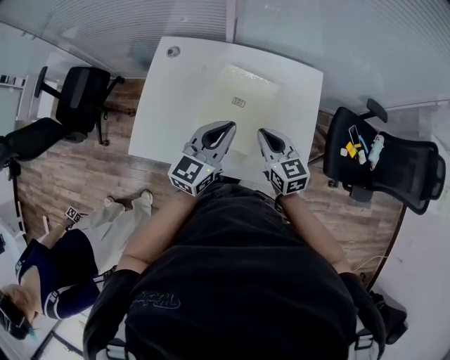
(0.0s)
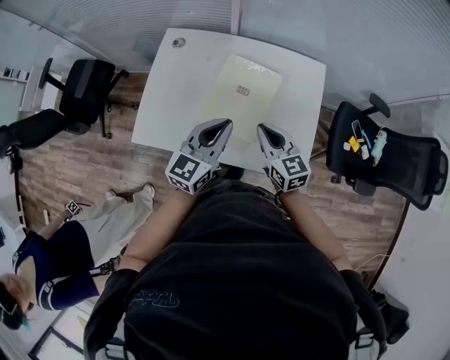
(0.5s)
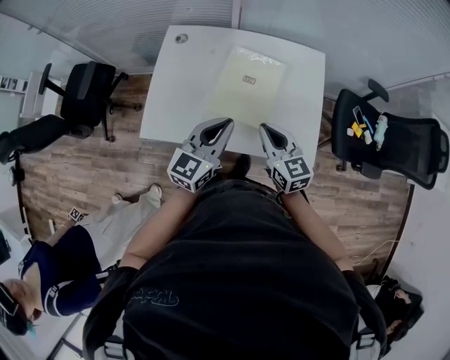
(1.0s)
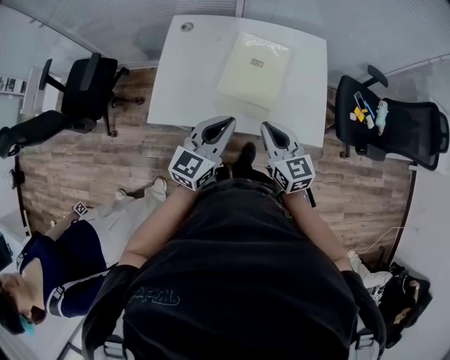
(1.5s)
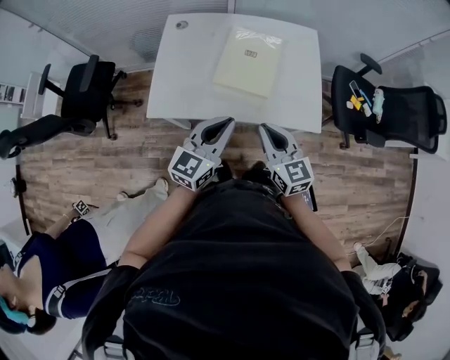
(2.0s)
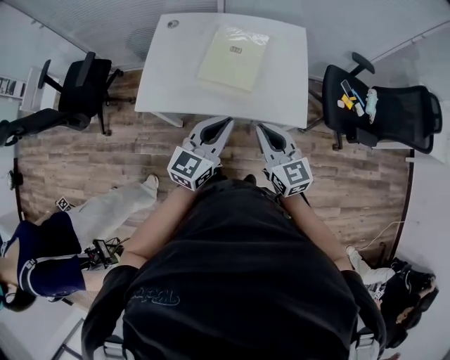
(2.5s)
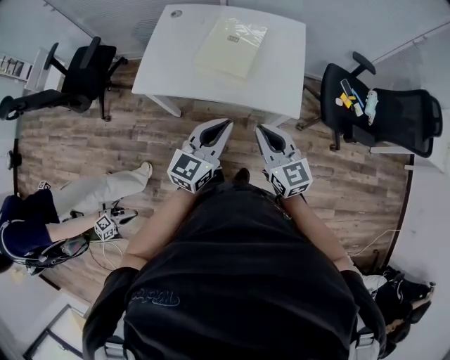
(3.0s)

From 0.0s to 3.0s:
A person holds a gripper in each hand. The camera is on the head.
From 0.0s to 1.5s: Both grippers move backward and to the left, approximately 20 cm.
From 1.5s to 3.0s: The grippers both shift backward and to the right by roughly 20 cm.

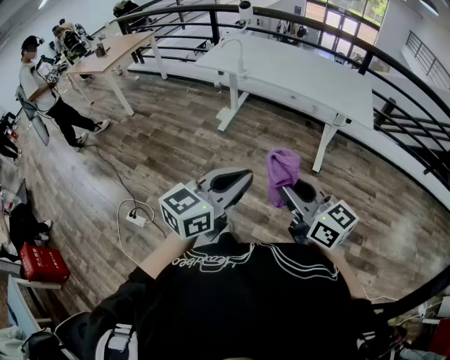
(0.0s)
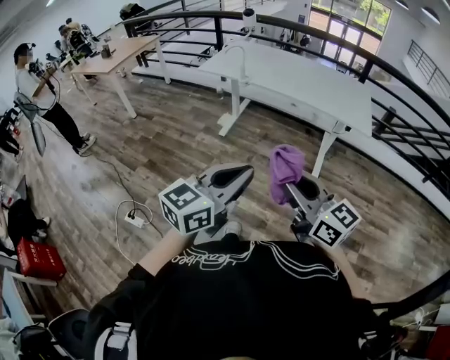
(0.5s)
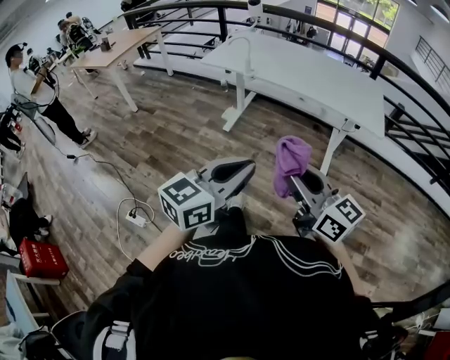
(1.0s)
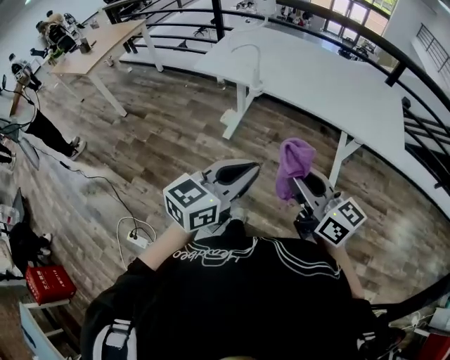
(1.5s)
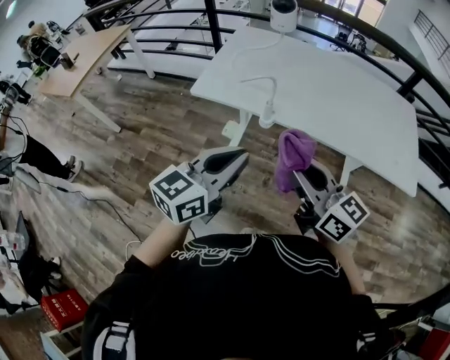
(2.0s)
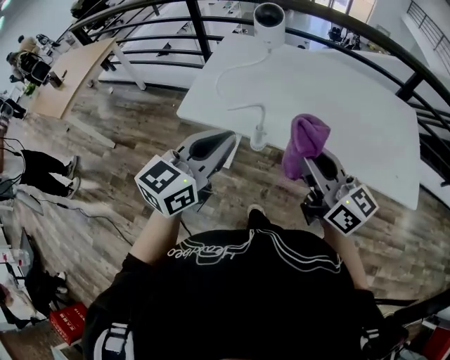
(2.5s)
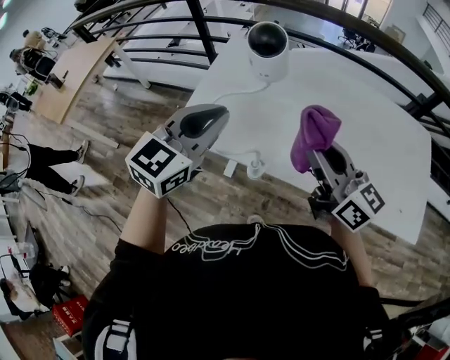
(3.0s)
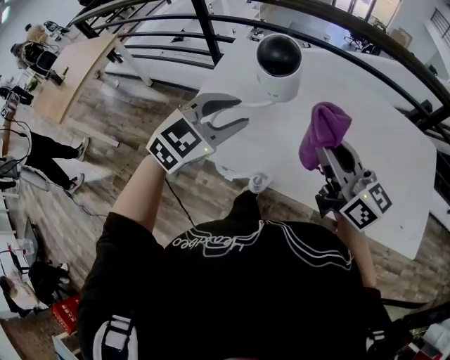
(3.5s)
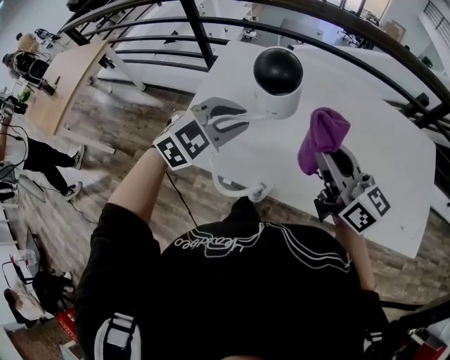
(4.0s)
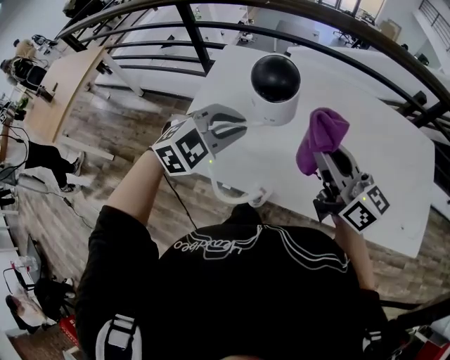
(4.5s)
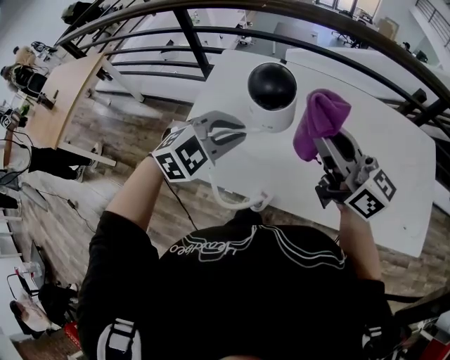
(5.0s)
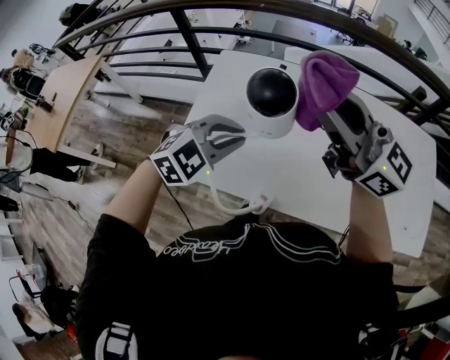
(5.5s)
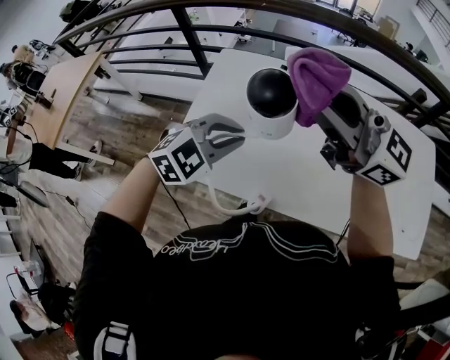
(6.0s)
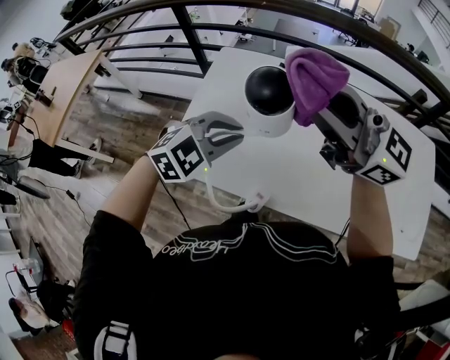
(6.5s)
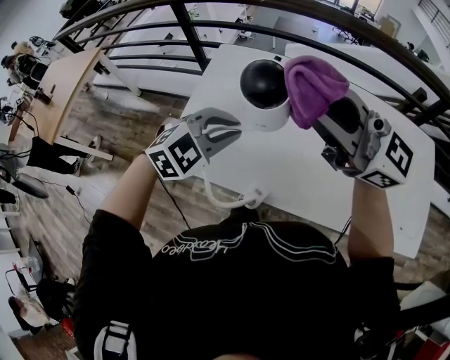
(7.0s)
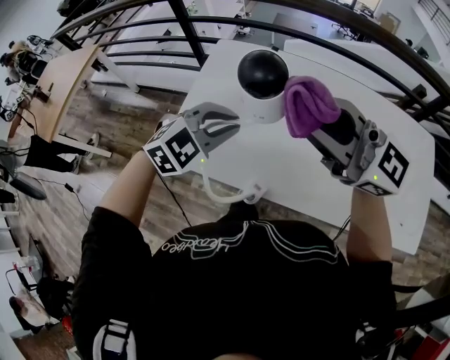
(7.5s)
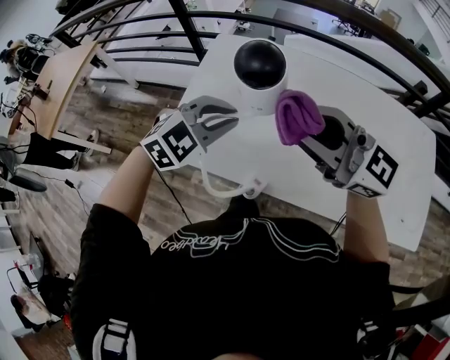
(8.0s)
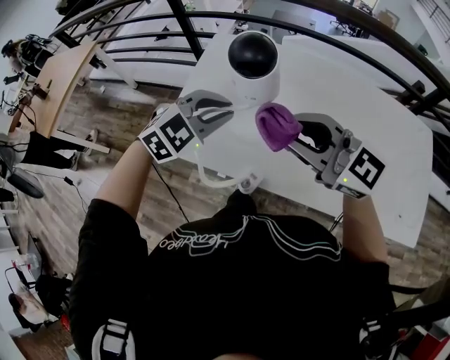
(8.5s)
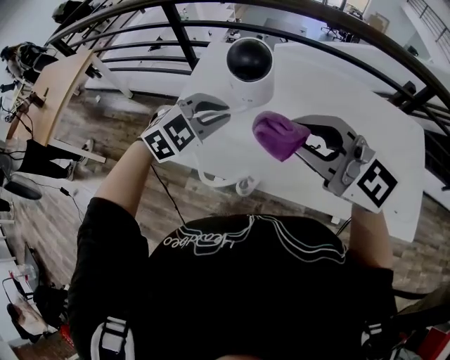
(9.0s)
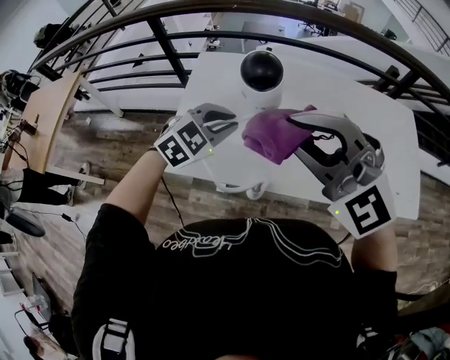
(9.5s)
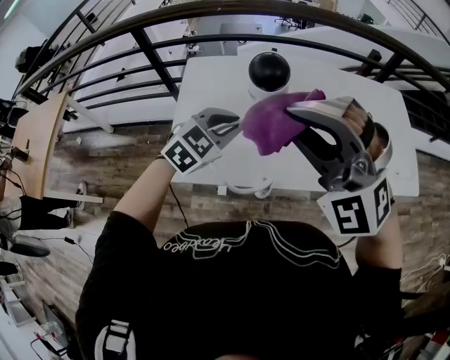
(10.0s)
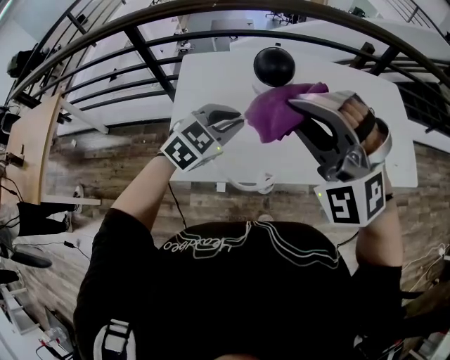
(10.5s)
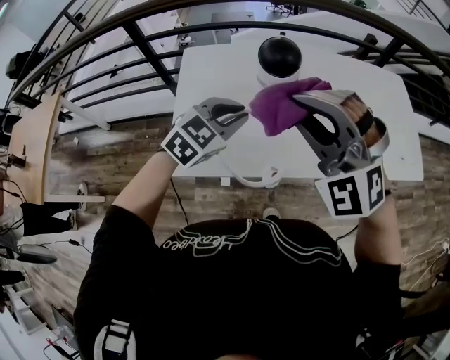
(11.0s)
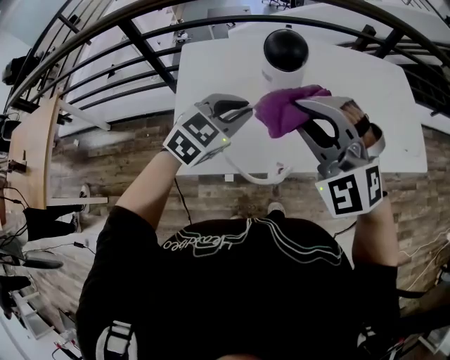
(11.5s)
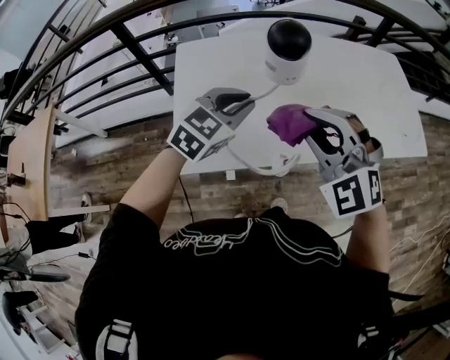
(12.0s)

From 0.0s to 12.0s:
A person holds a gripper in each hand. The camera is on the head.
From 0.0s to 2.0s: Both grippers are carried forward, some 60 cm.
From 2.0s to 4.0s: Both grippers are carried forward, some 40 cm. The left gripper rotates around the line of its fingers by some 40 degrees, clockwise from behind, and opens up.
From 4.0s to 6.0s: The right gripper is displaced upward and forward by roughly 15 cm, and swivels about 30 degrees.
From 6.0s to 8.0s: The right gripper travels downward and backward by about 10 cm.
From 8.0s to 10.0s: The right gripper moves some 10 cm, and turns by about 80 degrees.
From 10.0s to 12.0s: The right gripper heads downward, covering roughly 10 cm, and rotates some 30 degrees.

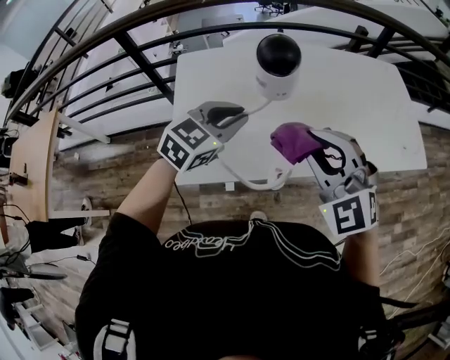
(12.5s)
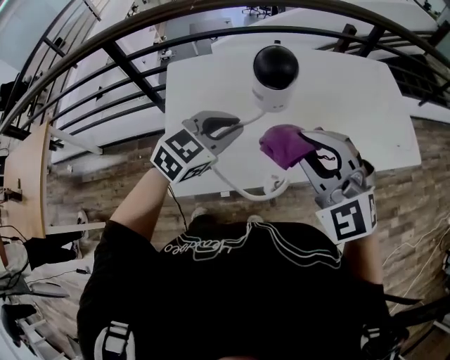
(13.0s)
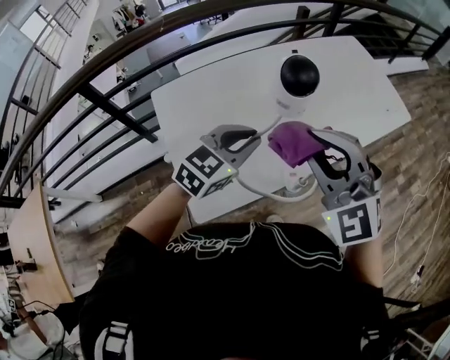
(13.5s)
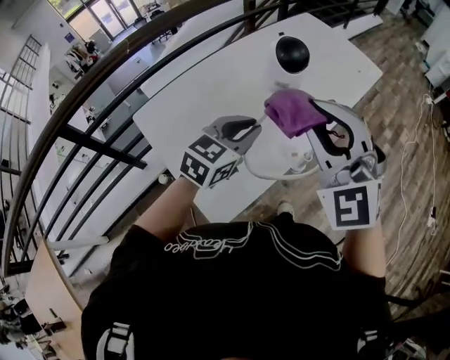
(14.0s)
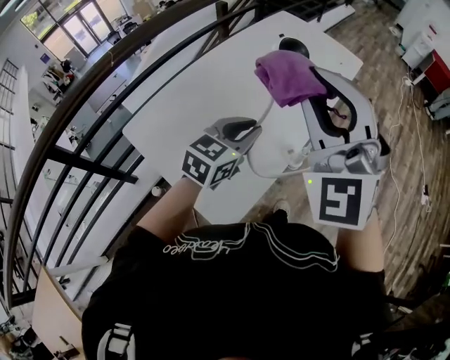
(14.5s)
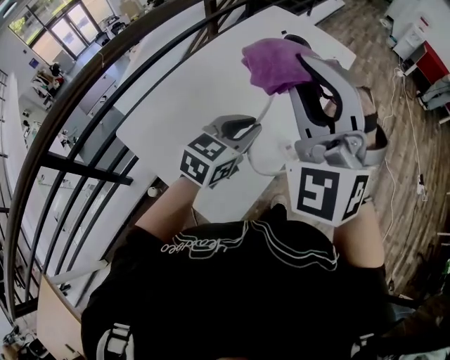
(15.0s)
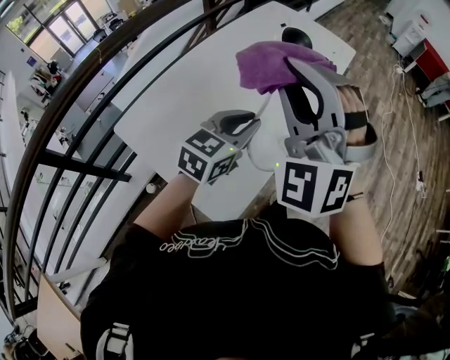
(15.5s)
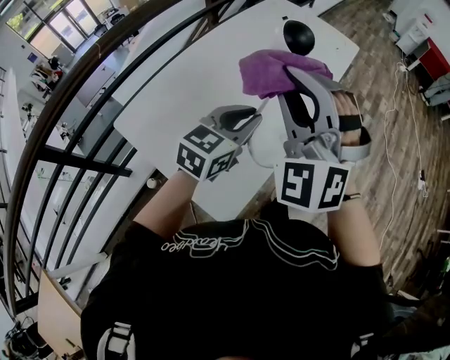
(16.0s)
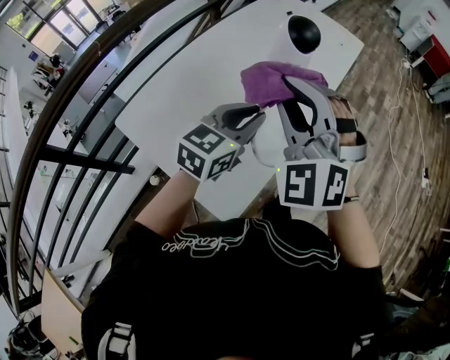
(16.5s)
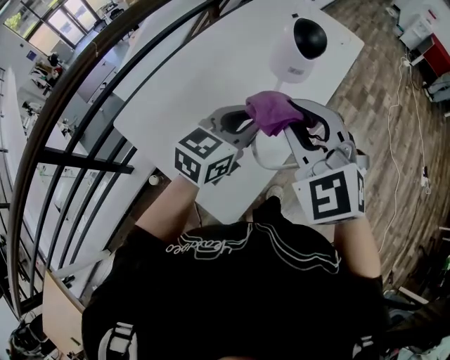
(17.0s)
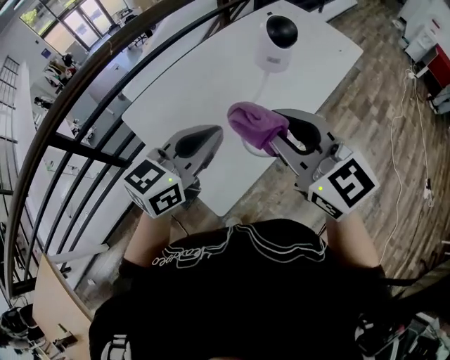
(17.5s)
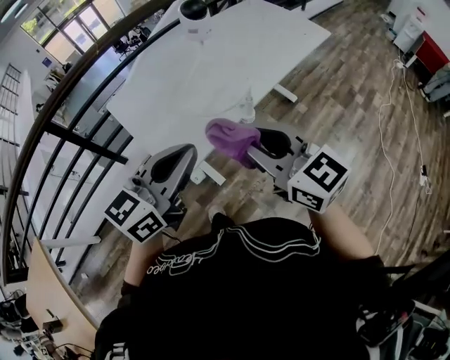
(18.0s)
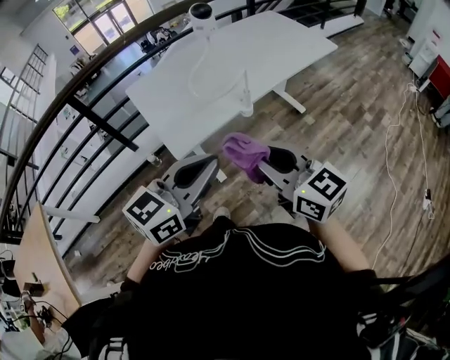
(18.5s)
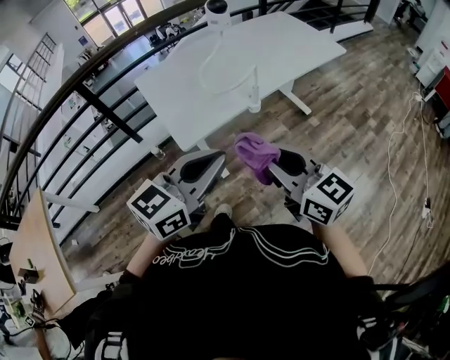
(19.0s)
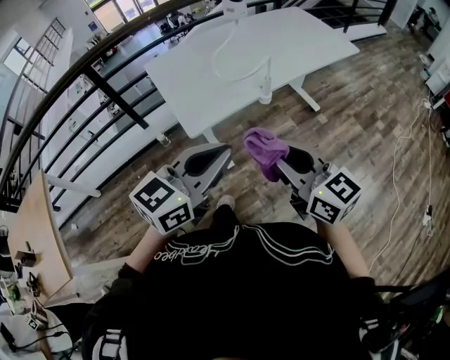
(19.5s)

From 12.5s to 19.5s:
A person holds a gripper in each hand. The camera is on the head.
From 12.5s to 14.5s: The left gripper turns by roughly 40 degrees, while the right gripper shifts roughly 15 cm upward, and swivels roughly 60 degrees.
From 14.5s to 16.0s: The right gripper goes approximately 5 cm downward.
From 16.0s to 17.5s: The right gripper heads backward, covering about 10 cm, and twists roughly 60 degrees clockwise, seen from behind, while the left gripper travels backward and upward by approximately 10 cm.
From 17.5s to 19.5s: The left gripper shifts approximately 35 cm backward. Meanwhile the right gripper is displaced backward and to the right by some 35 cm, and swivels about 20 degrees.

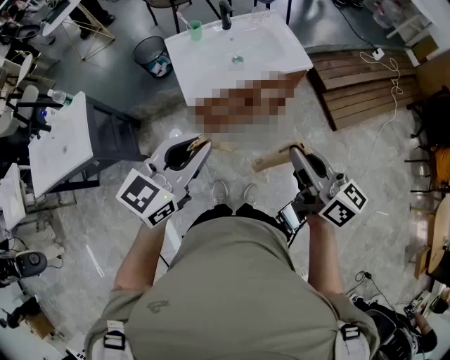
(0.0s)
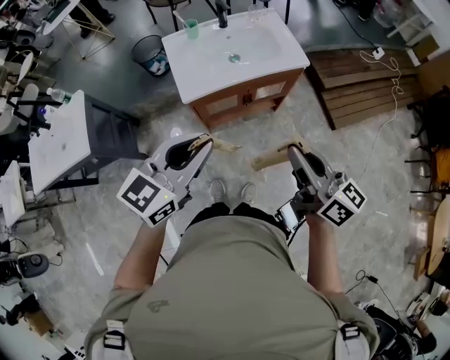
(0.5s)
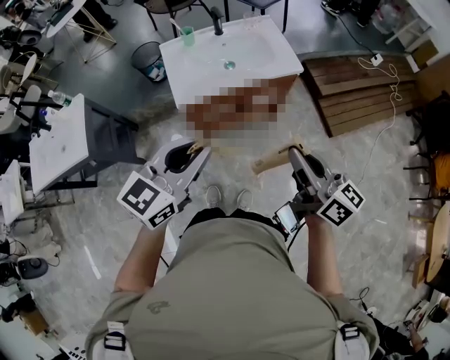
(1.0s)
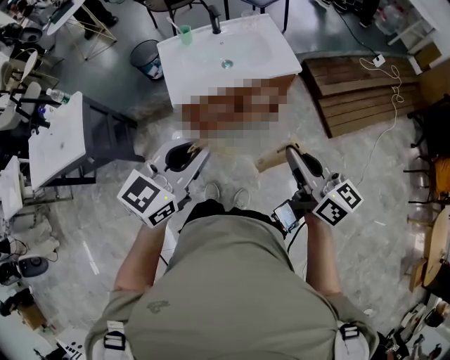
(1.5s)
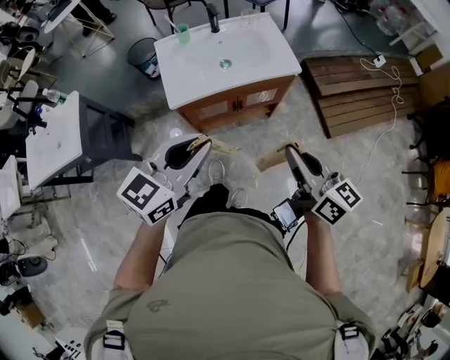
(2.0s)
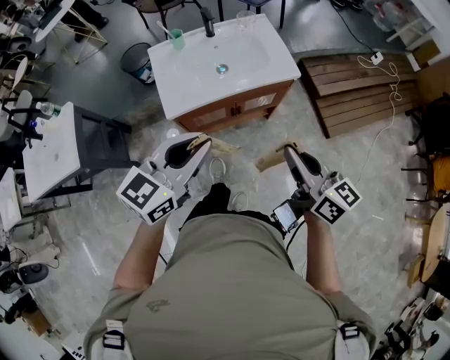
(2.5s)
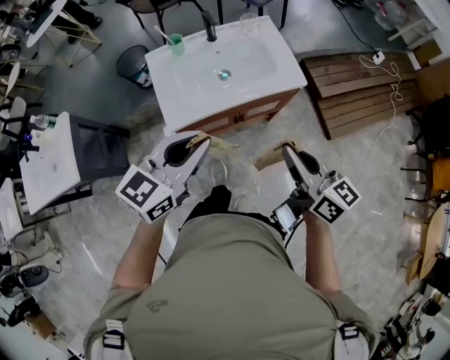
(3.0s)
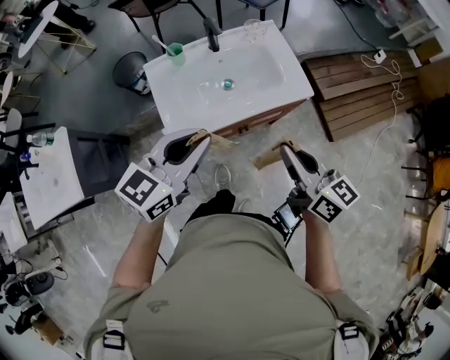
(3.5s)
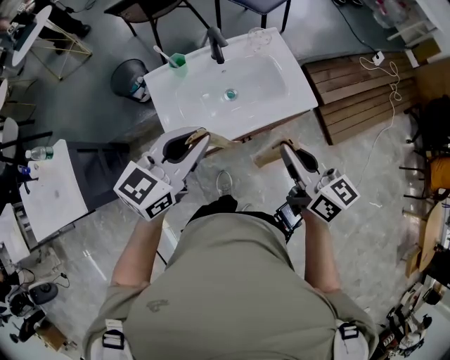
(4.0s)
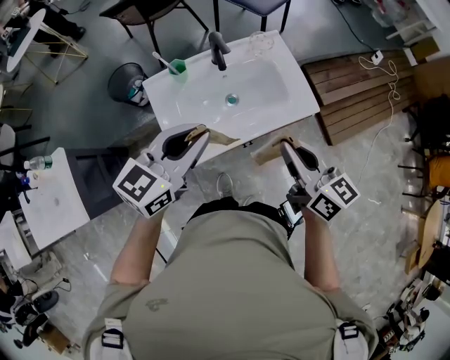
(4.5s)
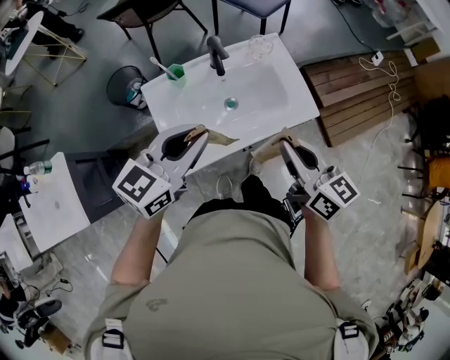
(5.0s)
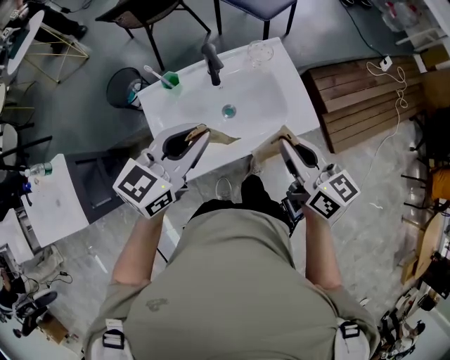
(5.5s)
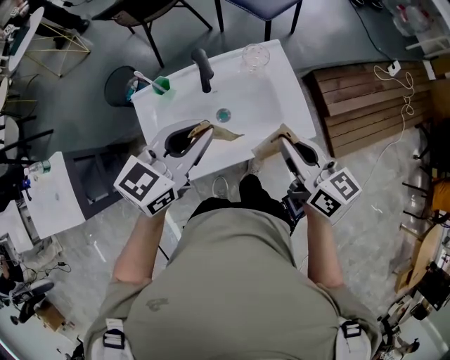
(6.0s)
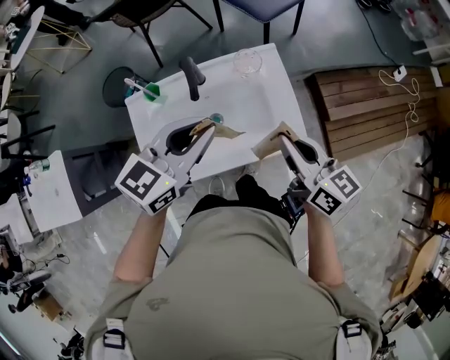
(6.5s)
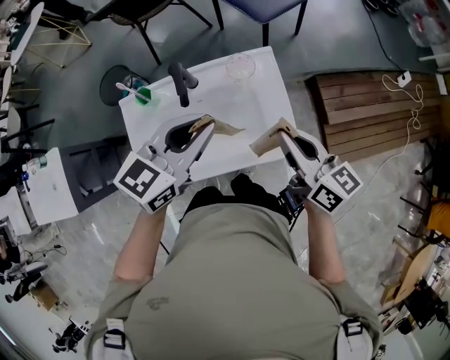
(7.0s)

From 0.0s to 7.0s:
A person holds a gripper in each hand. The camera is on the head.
From 0.0s to 2.0s: The grippers both shift to the right by approximately 10 cm.
From 2.0s to 3.5s: The left gripper shifts about 20 cm forward. Meanwhile the right gripper goes approximately 20 cm forward and to the left.
From 3.5s to 5.0s: The right gripper travels forward by some 10 cm. Meanwhile the left gripper goes about 15 cm forward and to the left.
From 5.0s to 7.0s: Both grippers move forward and to the right, about 20 cm.
